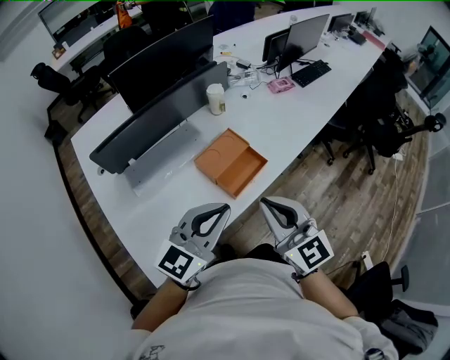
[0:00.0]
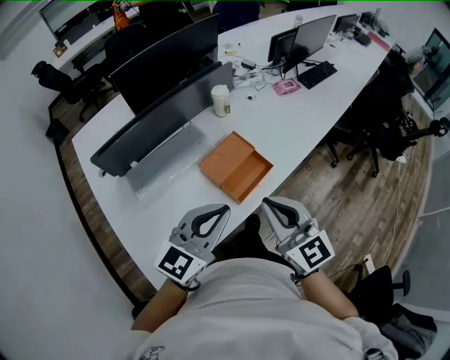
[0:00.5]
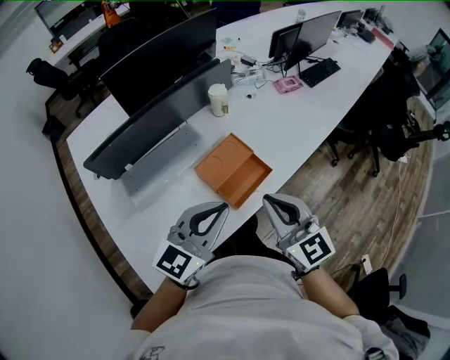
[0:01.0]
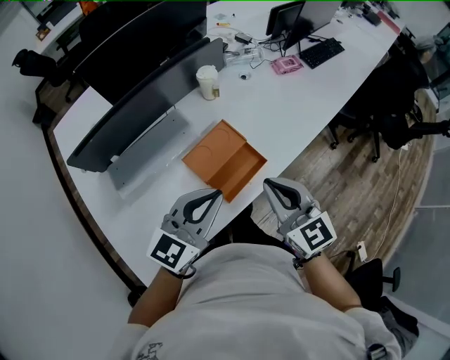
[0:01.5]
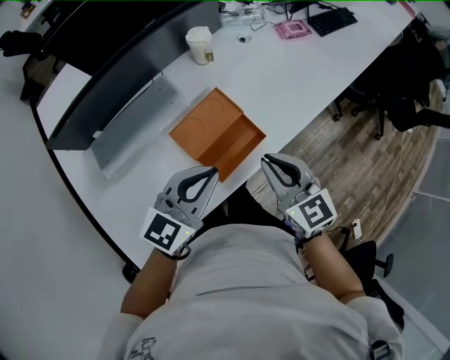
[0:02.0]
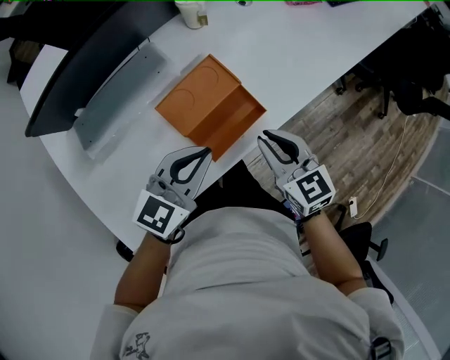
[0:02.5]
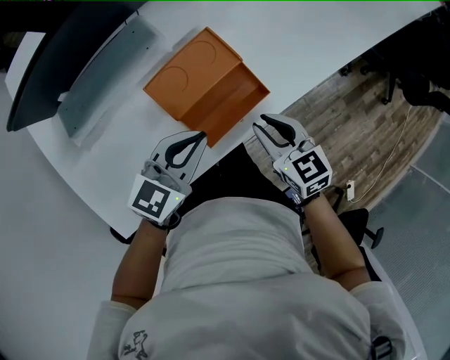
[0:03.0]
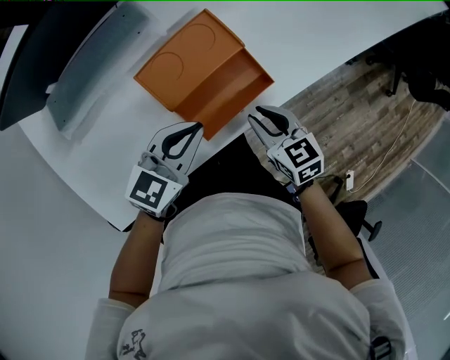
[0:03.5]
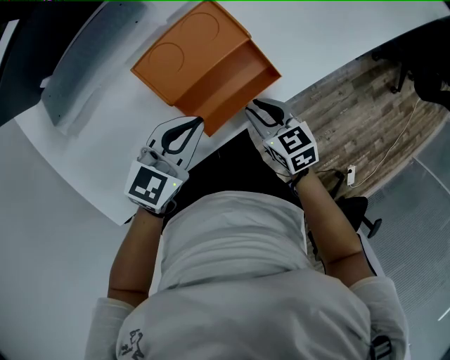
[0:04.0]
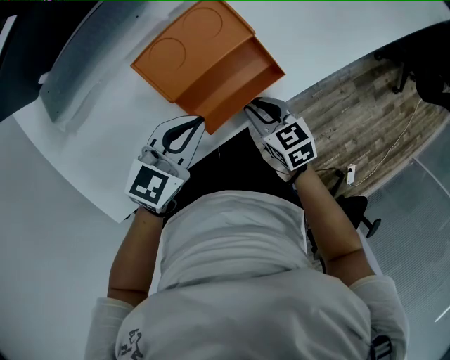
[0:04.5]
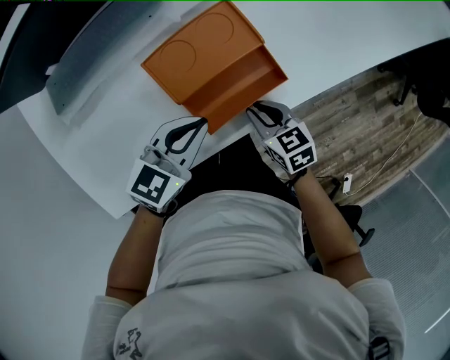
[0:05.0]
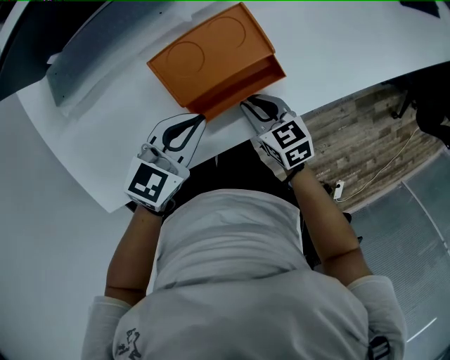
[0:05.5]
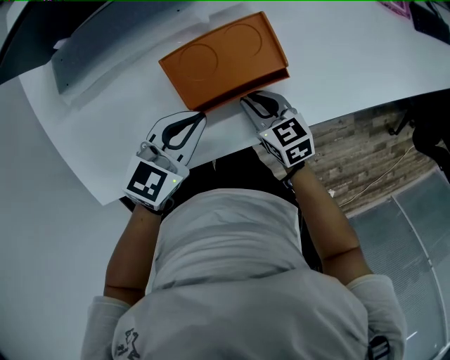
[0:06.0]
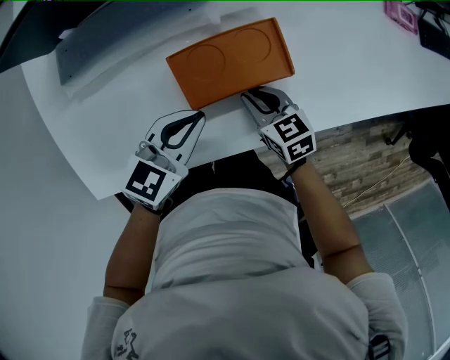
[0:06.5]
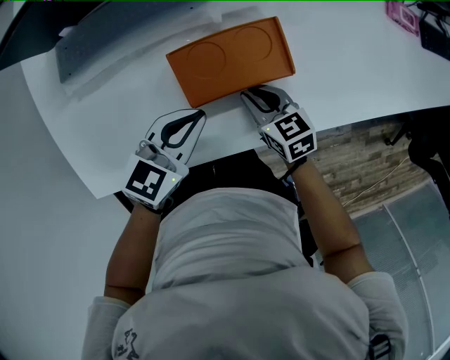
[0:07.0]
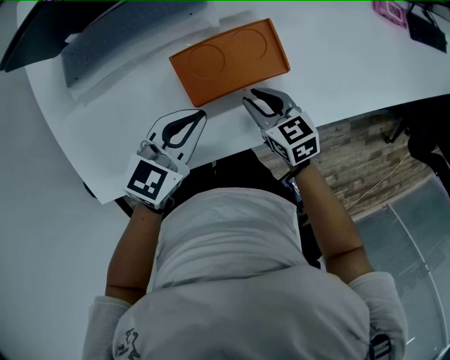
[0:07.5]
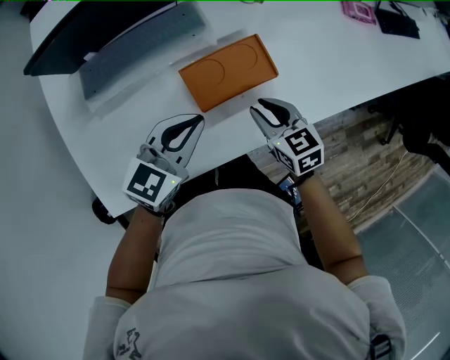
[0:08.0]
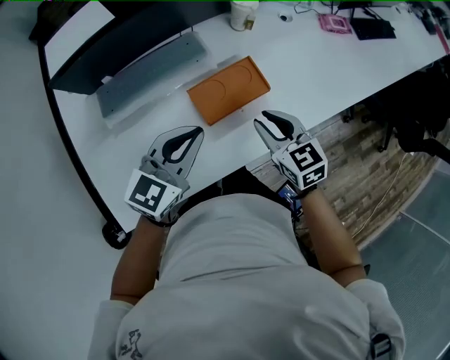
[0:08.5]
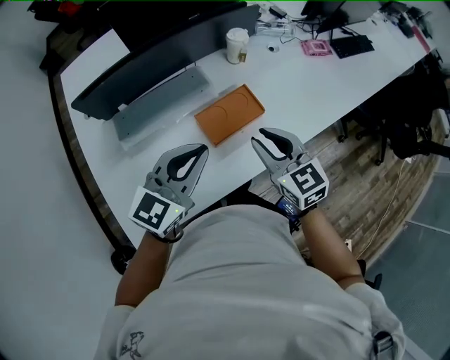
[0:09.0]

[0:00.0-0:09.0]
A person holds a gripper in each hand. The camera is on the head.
0:00.0 to 0:02.0: Both grippers move forward and downward, roughly 25 cm.
0:02.0 to 0:04.5: Both grippers move downward, approximately 30 cm. The right gripper rotates approximately 30 degrees.
0:04.5 to 0:07.0: The left gripper goes approximately 5 cm forward. Meanwhile the right gripper shifts some 15 cm forward and to the left.
0:07.0 to 0:09.0: Both grippers move upward, some 30 cm. The left gripper rotates about 30 degrees. The right gripper rotates roughly 40 degrees.

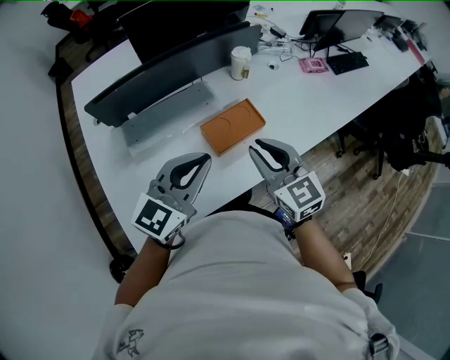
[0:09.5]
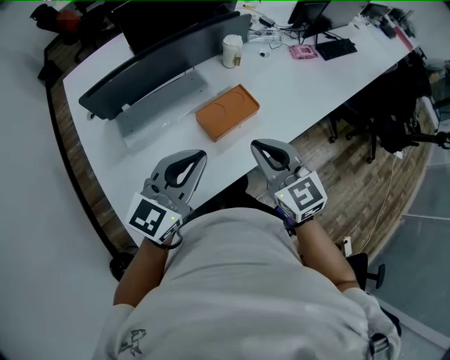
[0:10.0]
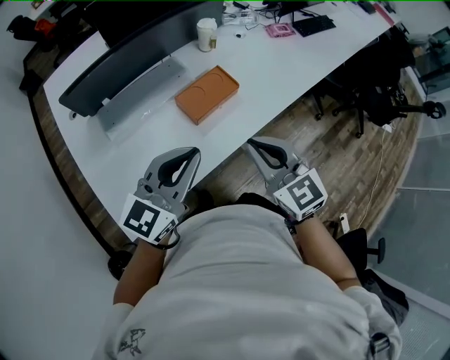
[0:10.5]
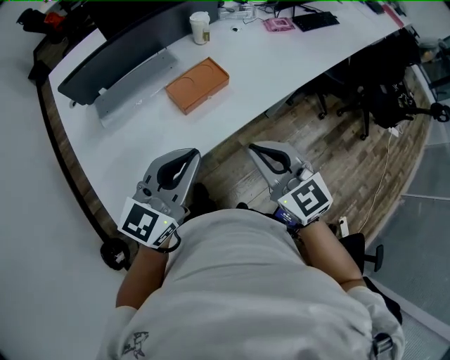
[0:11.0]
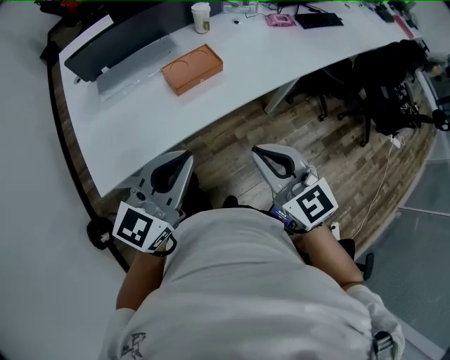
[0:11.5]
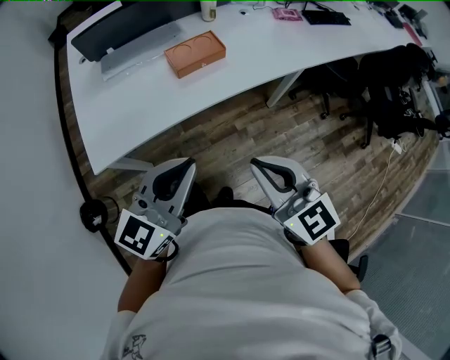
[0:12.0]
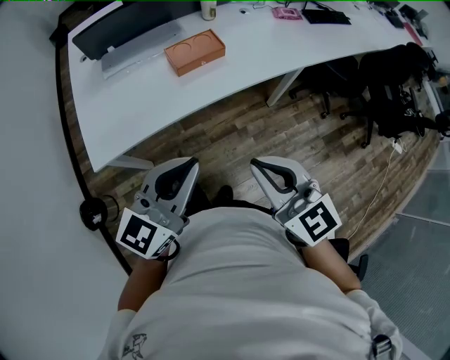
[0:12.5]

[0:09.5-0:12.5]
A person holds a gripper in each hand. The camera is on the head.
0:09.5 to 0:11.0: Both grippers travel together backward and to the right, roughly 20 cm.
0:11.0 to 0:12.5: The two grippers go roughly 20 cm backward and to the right.

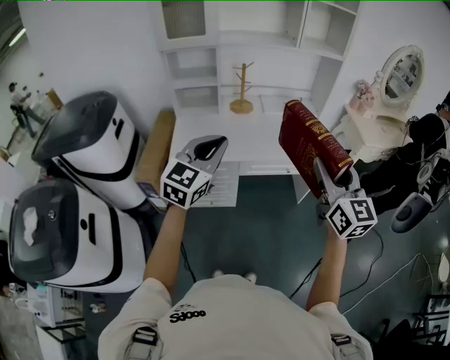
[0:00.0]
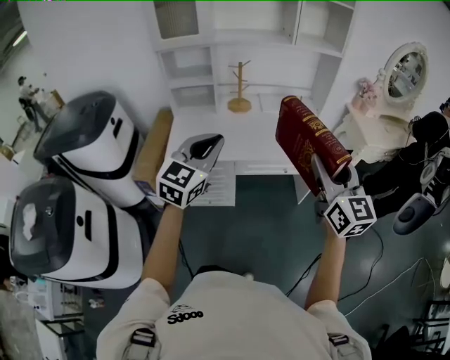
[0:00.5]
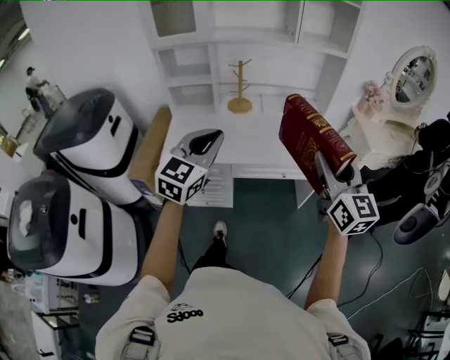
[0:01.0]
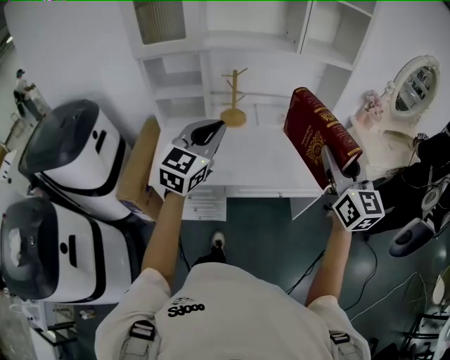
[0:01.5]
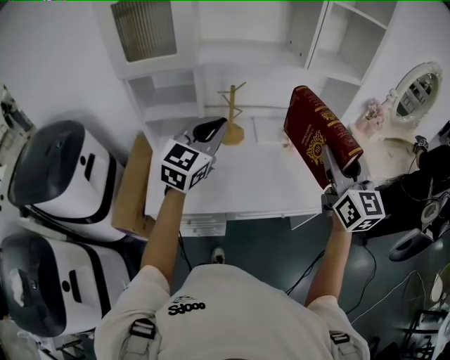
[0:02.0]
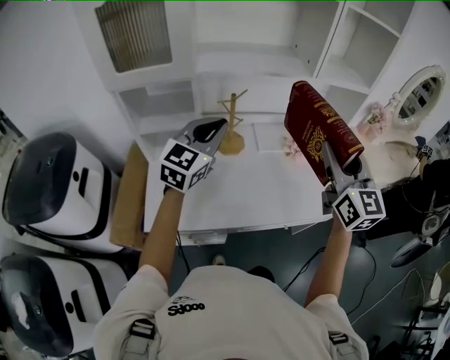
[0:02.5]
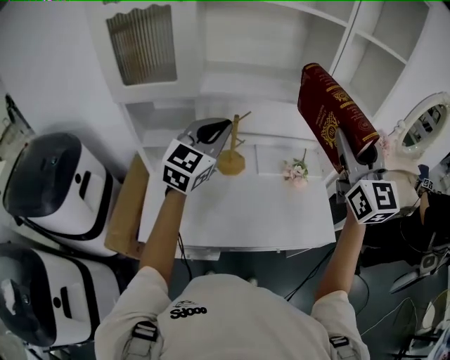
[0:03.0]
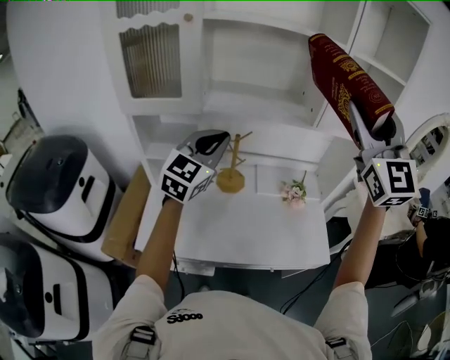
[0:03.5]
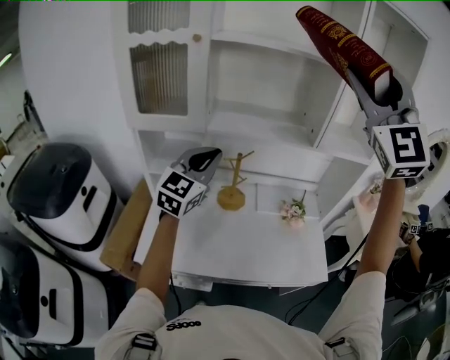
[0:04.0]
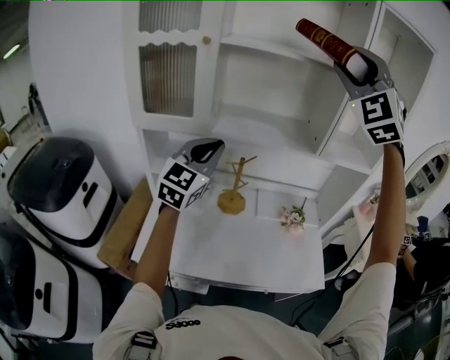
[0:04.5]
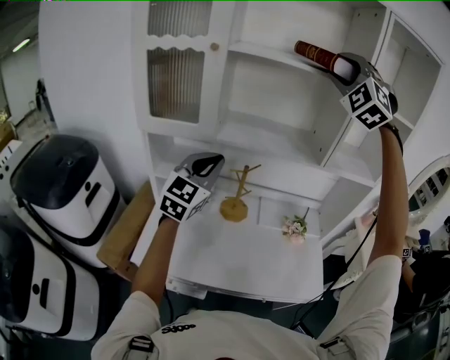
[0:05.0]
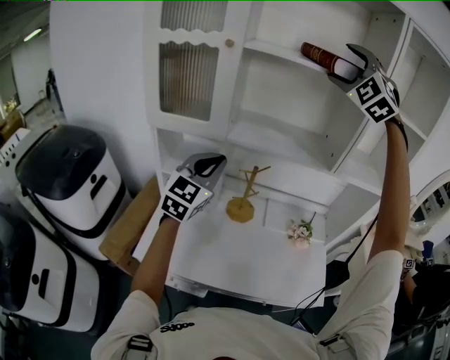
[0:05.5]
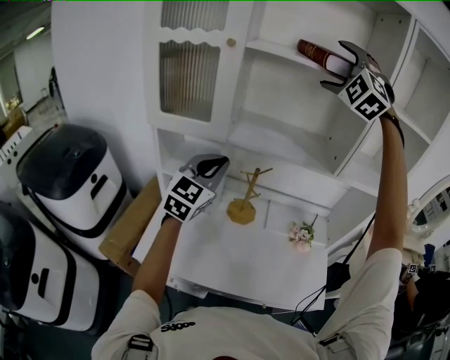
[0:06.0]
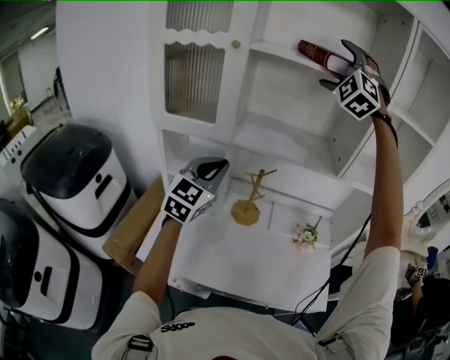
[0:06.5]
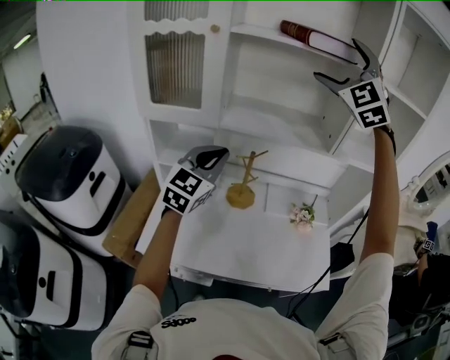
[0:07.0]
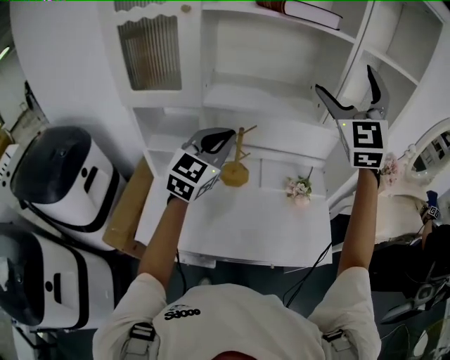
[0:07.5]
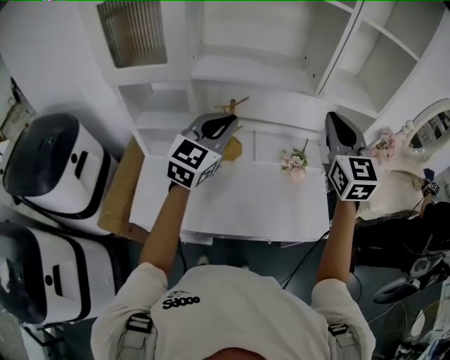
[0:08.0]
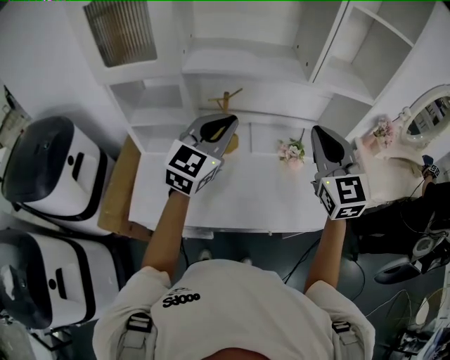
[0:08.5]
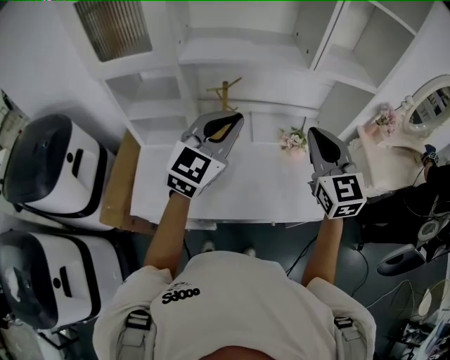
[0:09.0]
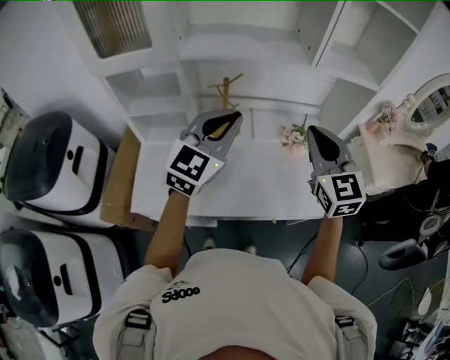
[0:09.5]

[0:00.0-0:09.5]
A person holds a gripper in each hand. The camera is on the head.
0:00.0 to 0:02.0: The grippers both shift forward by some 30 cm.
0:02.0 to 0:04.0: The right gripper shifts some 35 cm upward and forward, and rotates around the line of its fingers by approximately 50 degrees, counterclockwise from behind. The left gripper heads forward and upward, covering approximately 15 cm.
0:04.0 to 0:05.5: The right gripper travels forward by approximately 20 cm, swivels about 30 degrees, and opens.
0:05.5 to 0:07.5: The left gripper travels to the right by approximately 10 cm. Meanwhile the right gripper is displaced downward, backward and to the right by about 20 cm, and turns by approximately 40 degrees.
0:07.5 to 0:09.5: The right gripper moves downward, approximately 25 cm, turns by approximately 40 degrees, and closes its fingers; the left gripper moves to the right, about 5 cm.

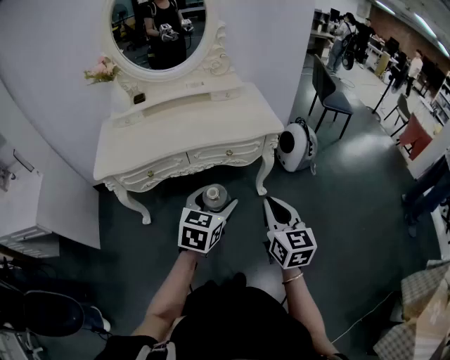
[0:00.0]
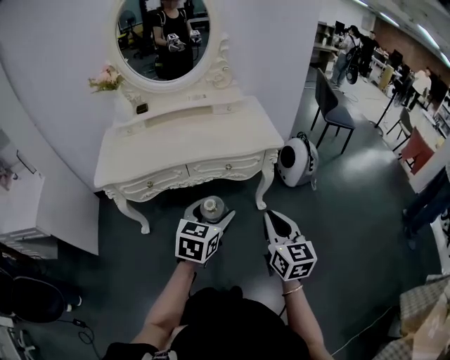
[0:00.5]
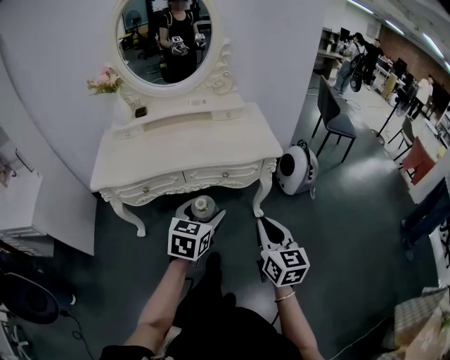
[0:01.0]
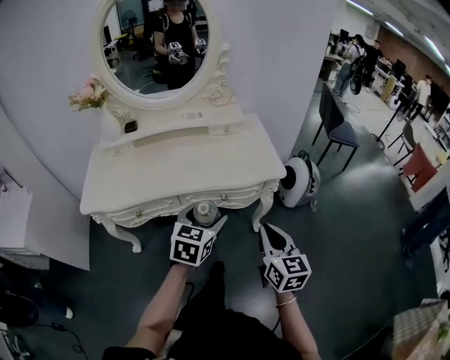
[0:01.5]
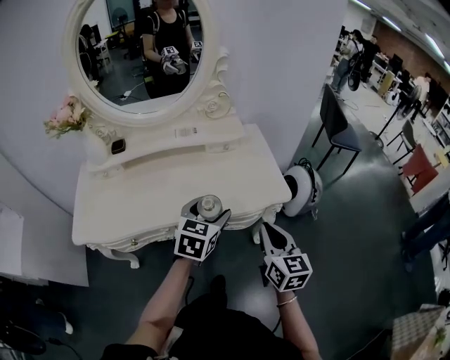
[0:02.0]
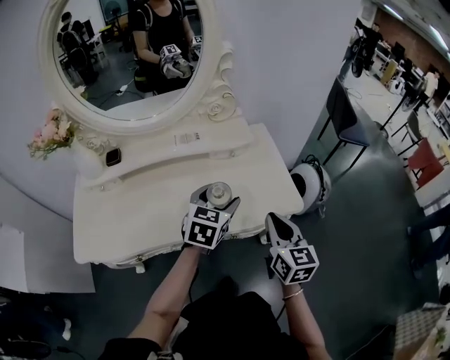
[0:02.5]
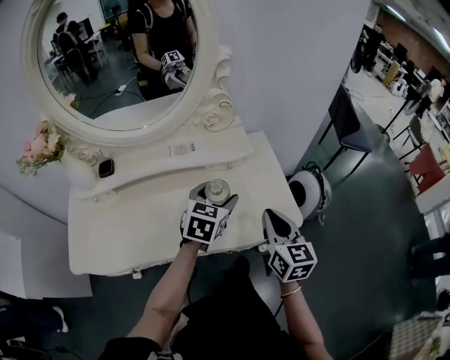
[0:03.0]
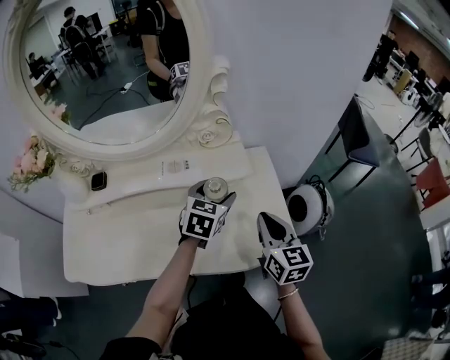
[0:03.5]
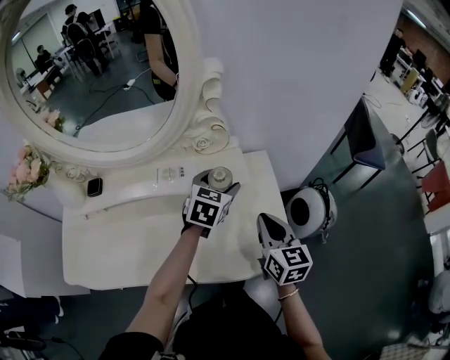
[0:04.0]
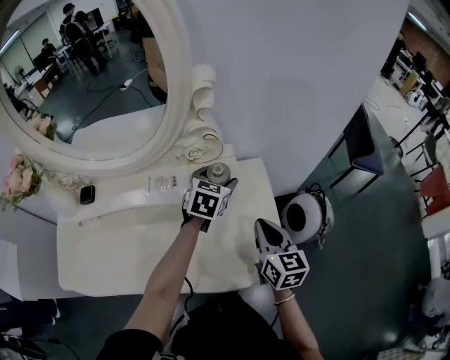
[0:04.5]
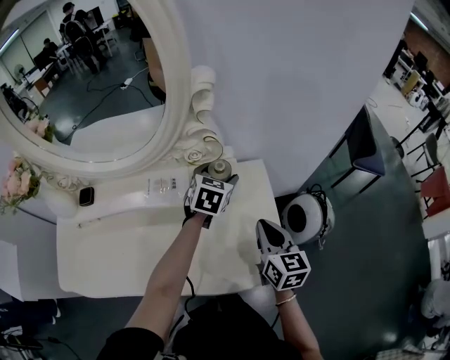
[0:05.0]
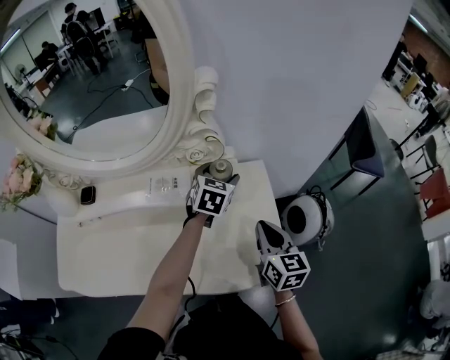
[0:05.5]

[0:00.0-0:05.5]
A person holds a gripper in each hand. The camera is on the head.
0:00.0 to 0:02.0: Both grippers travel together forward, approximately 30 cm.
0:02.0 to 0:03.5: The two grippers go roughly 25 cm forward.
0:03.5 to 0:05.5: The right gripper goes about 5 cm forward. Meanwhile the left gripper travels forward by about 15 cm.
